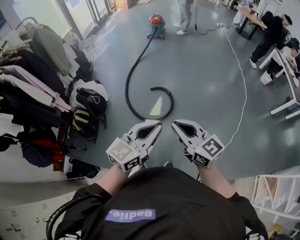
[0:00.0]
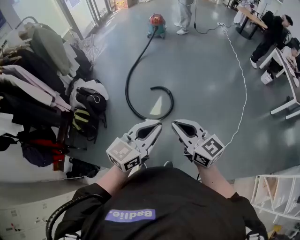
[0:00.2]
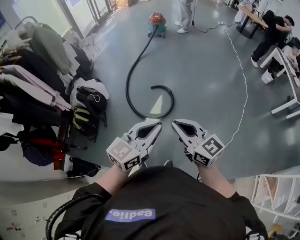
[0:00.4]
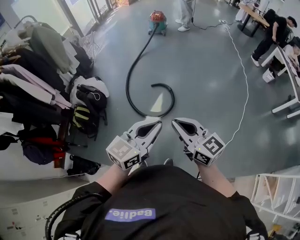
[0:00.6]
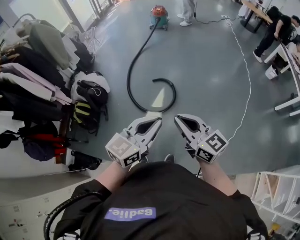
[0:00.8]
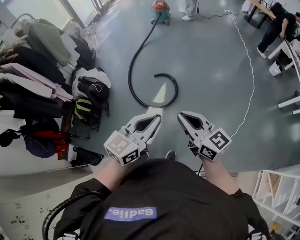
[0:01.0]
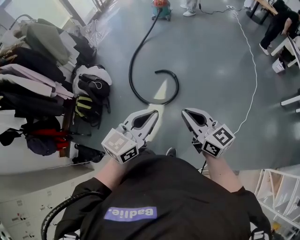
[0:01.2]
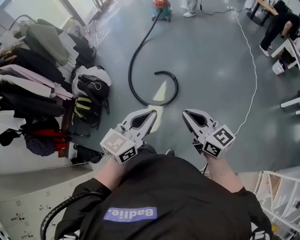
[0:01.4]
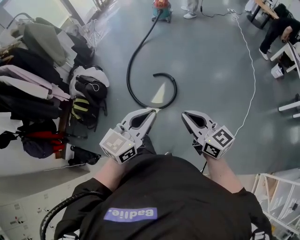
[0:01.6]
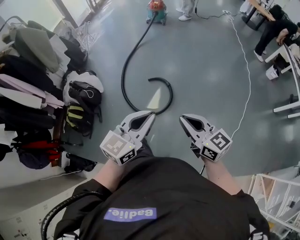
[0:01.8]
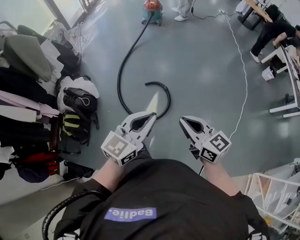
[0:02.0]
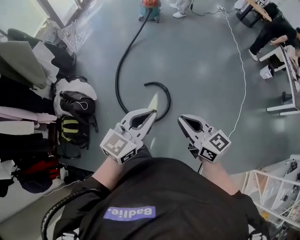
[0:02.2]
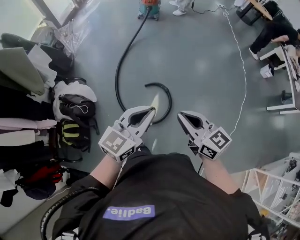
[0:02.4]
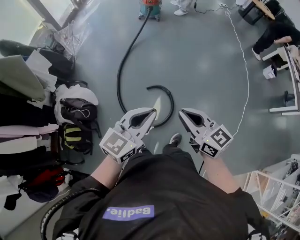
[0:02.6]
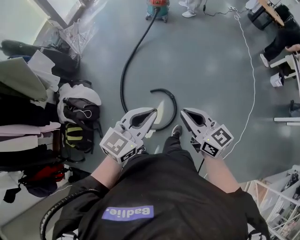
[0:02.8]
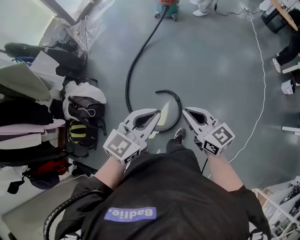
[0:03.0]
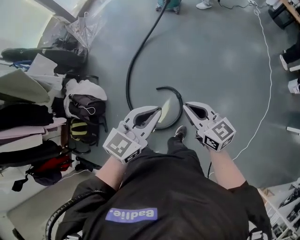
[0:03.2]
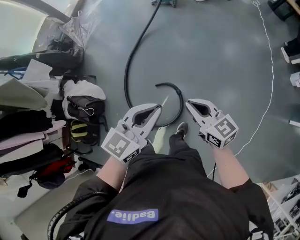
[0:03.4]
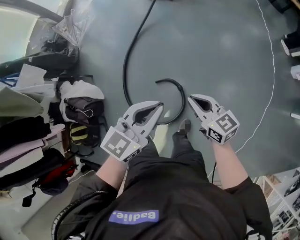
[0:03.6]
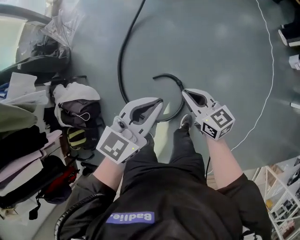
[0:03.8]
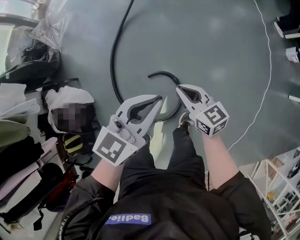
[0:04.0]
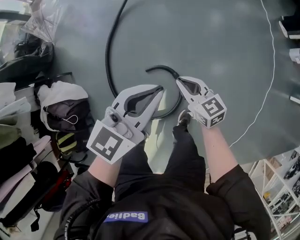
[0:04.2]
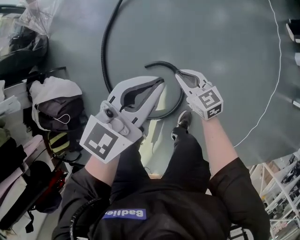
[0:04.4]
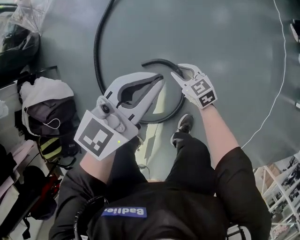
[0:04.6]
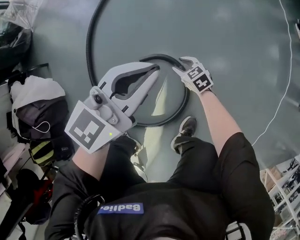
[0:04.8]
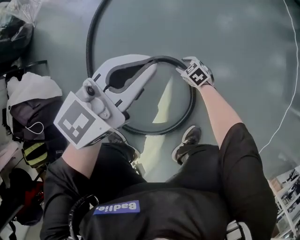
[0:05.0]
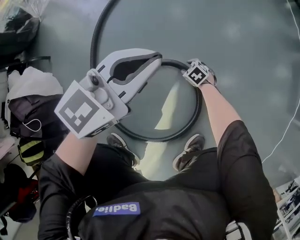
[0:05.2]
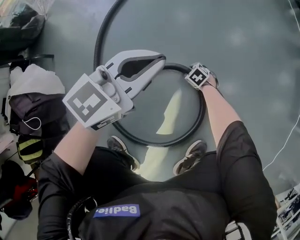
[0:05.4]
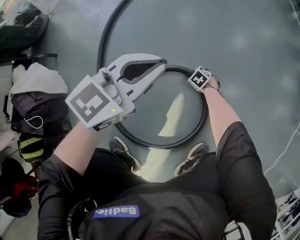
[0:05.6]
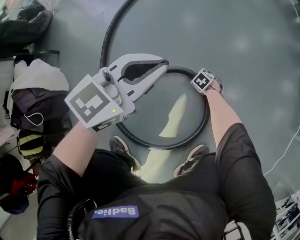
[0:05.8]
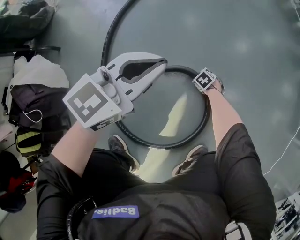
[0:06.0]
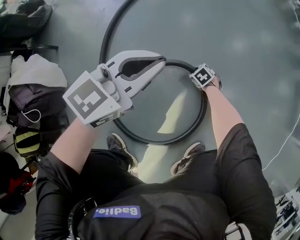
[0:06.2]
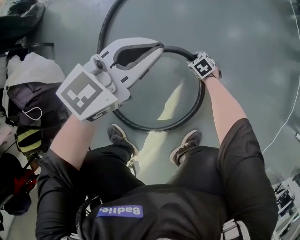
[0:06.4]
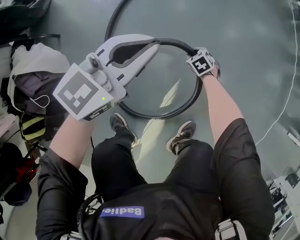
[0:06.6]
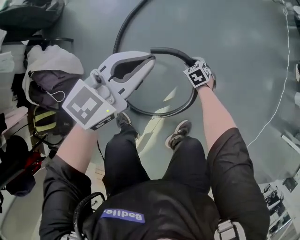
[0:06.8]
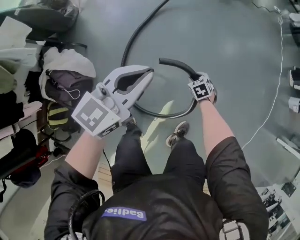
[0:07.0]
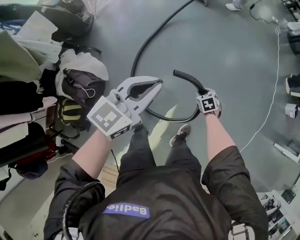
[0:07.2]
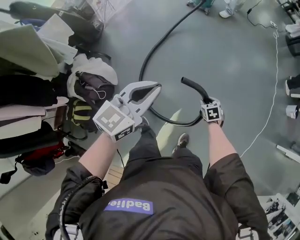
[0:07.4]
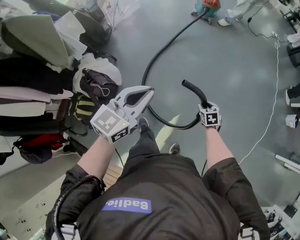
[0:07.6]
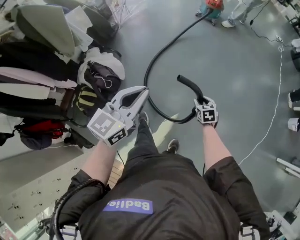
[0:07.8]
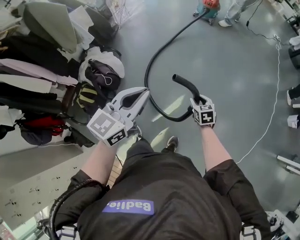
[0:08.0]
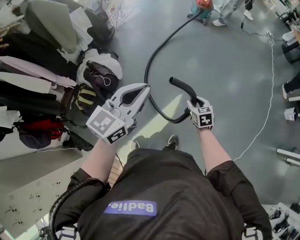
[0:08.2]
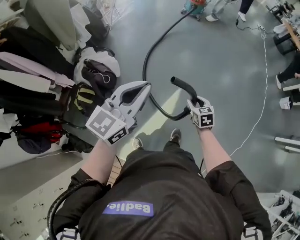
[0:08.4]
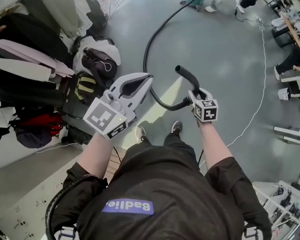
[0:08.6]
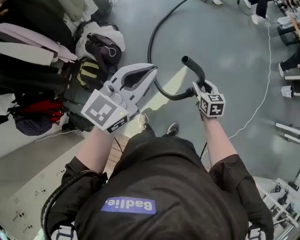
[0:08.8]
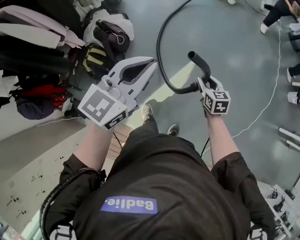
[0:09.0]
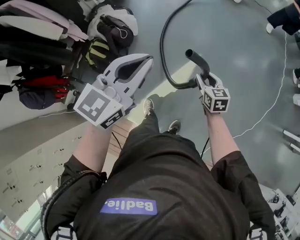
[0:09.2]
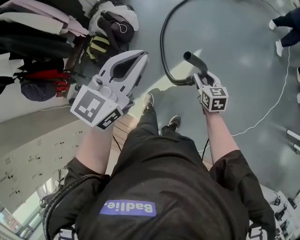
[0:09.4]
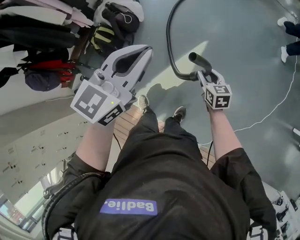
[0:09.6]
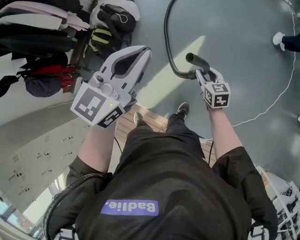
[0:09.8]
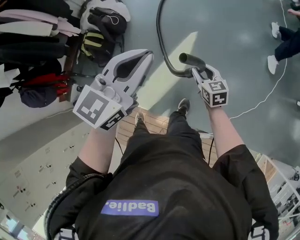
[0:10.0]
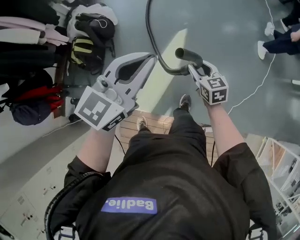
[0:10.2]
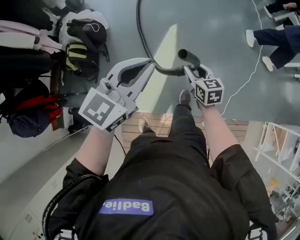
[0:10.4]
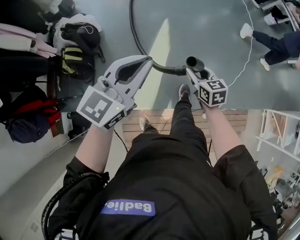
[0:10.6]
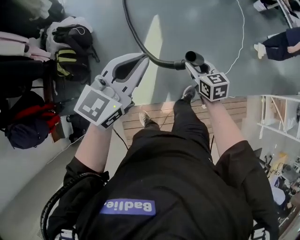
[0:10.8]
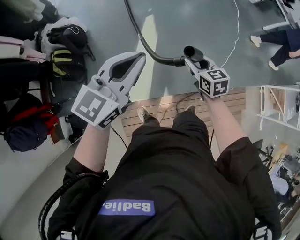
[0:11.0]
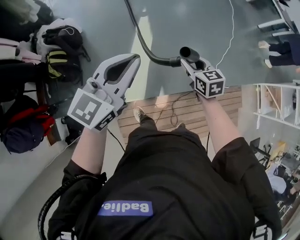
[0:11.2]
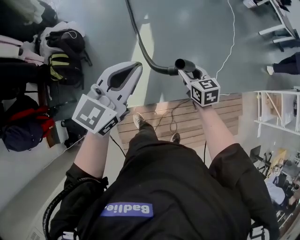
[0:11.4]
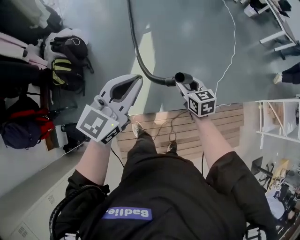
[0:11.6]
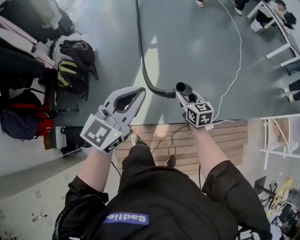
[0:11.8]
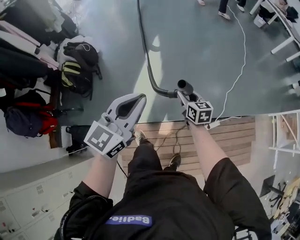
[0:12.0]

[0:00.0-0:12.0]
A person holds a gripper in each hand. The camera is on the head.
0.0 to 1.6 s: The right gripper heads to the right, forward and downward, covering about 10 cm; the left gripper shifts about 10 cm forward.
1.6 to 3.0 s: The pair of grippers is taken forward, some 40 cm.
3.0 to 4.4 s: The grippers both shift downward and forward by approximately 40 cm.
4.4 to 6.0 s: The right gripper goes some 60 cm downward, tips its fingers downward by approximately 50 degrees, and opens, while the left gripper travels downward by about 35 cm.
6.0 to 7.6 s: Both grippers travel together upward, about 70 cm. The right gripper turns by some 30 degrees; the left gripper changes its angle by roughly 20 degrees.
7.6 to 9.0 s: The right gripper moves backward and to the left, some 35 cm, and swivels roughly 20 degrees. The left gripper moves backward, roughly 35 cm.
9.0 to 10.4 s: The left gripper shifts by approximately 30 cm, and changes its angle by some 20 degrees, while the right gripper shifts by about 30 cm.
10.4 to 12.0 s: The right gripper shifts about 30 cm backward, to the right and downward; the left gripper shifts roughly 30 cm backward and to the right.

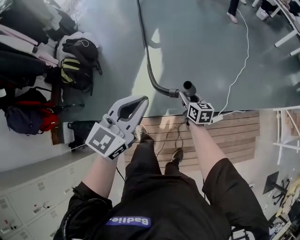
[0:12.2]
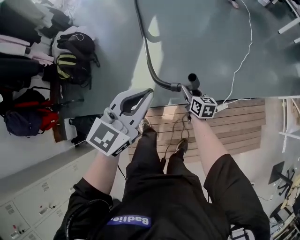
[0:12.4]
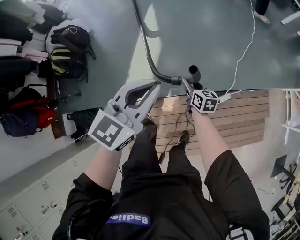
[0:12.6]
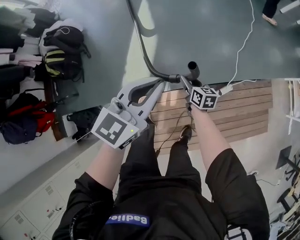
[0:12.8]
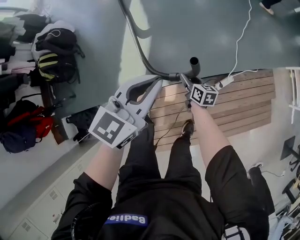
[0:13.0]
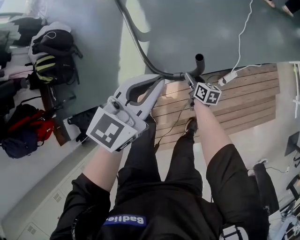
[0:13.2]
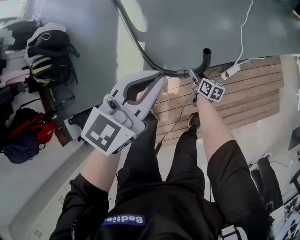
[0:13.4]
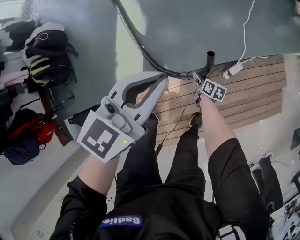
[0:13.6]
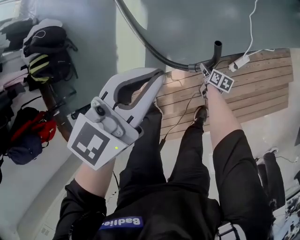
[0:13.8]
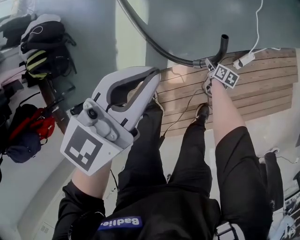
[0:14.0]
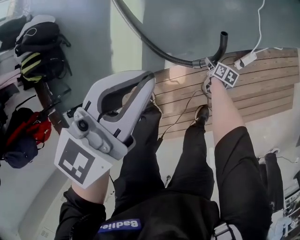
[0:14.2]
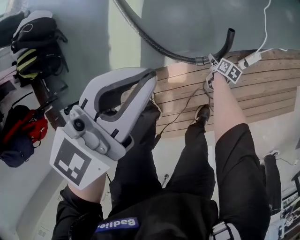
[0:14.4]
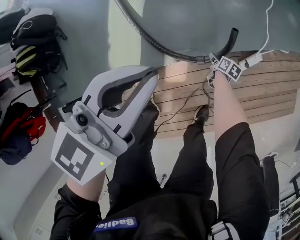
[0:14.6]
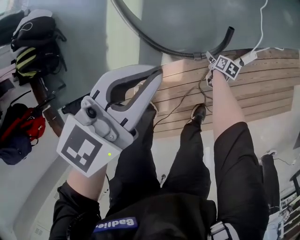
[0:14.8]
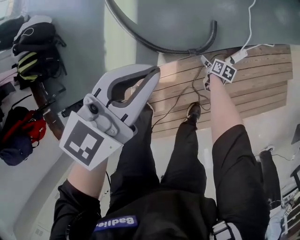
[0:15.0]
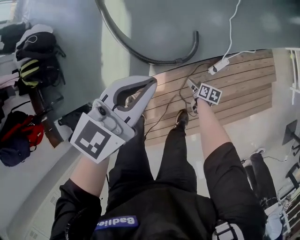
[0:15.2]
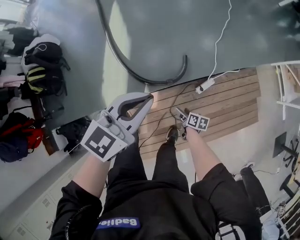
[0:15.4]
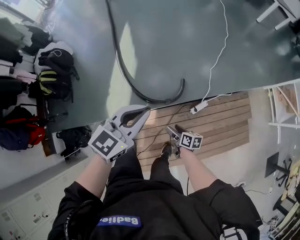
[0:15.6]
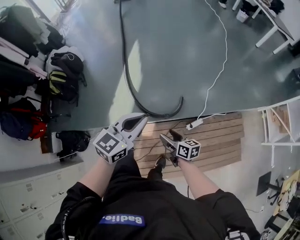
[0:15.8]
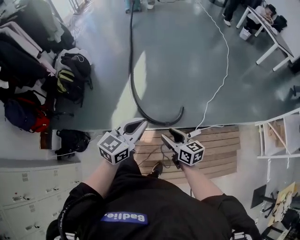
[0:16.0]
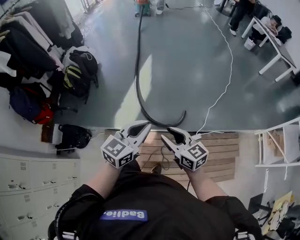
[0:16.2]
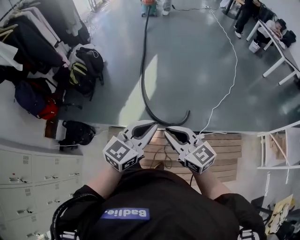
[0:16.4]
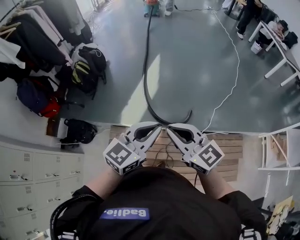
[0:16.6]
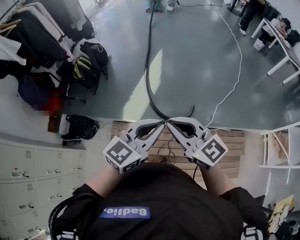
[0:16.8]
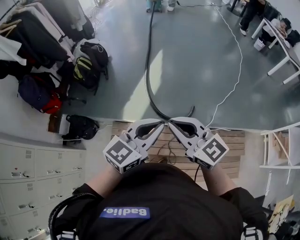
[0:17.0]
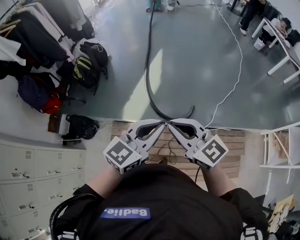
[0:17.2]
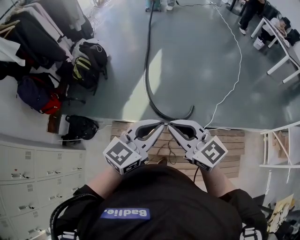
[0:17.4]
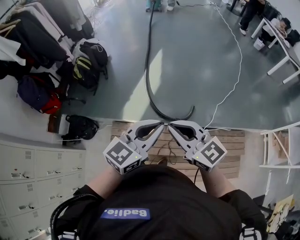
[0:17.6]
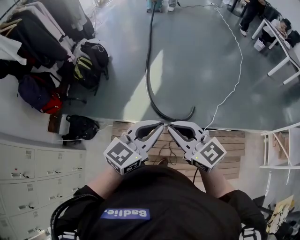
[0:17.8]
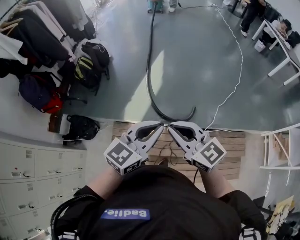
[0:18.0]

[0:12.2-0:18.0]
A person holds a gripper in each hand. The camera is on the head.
12.2 to 13.6 s: The left gripper goes about 25 cm downward, to the right and forward, and turns by approximately 20 degrees. Meanwhile the right gripper travels downward by approximately 40 cm, and changes its angle by some 40 degrees.
13.6 to 15.0 s: The left gripper moves downward, some 5 cm. The right gripper goes some 15 cm downward and to the right, and opens.
15.0 to 16.6 s: The left gripper is displaced upward by about 35 cm, and turns by some 30 degrees; the right gripper travels upward by some 80 cm, tilts its fingers approximately 50 degrees upward, and closes up.
16.6 to 18.0 s: There are only small adjustments of the grippers.

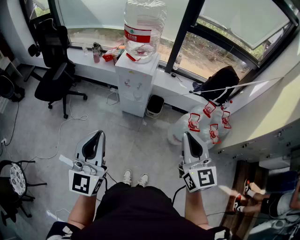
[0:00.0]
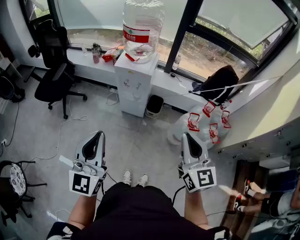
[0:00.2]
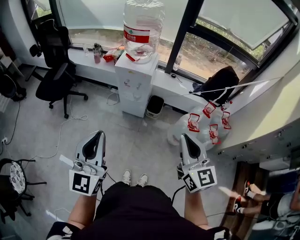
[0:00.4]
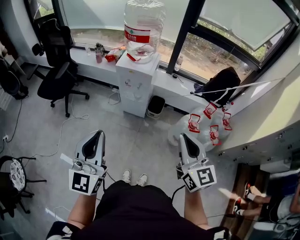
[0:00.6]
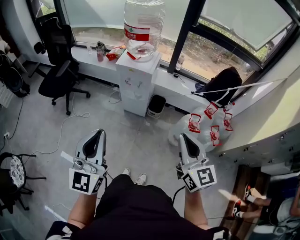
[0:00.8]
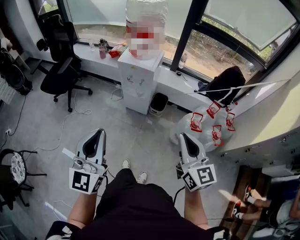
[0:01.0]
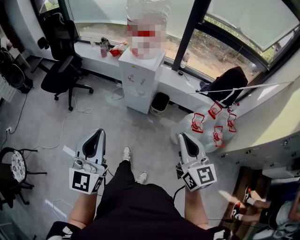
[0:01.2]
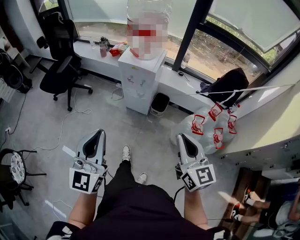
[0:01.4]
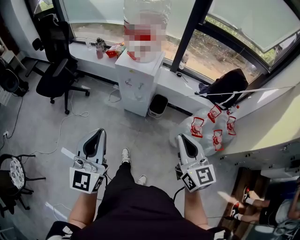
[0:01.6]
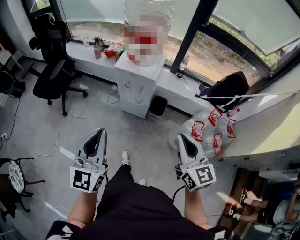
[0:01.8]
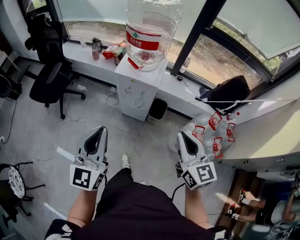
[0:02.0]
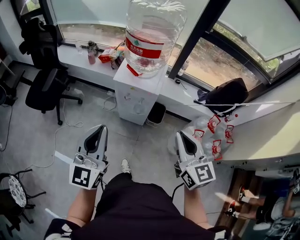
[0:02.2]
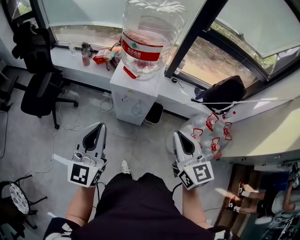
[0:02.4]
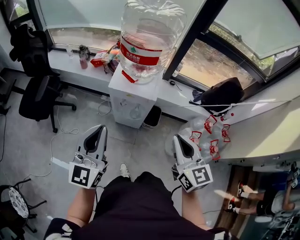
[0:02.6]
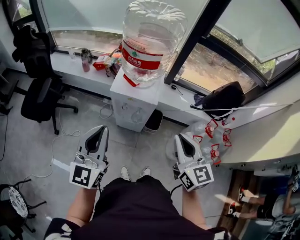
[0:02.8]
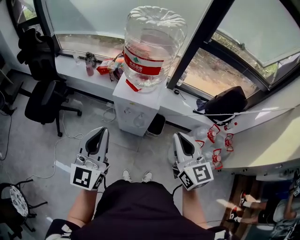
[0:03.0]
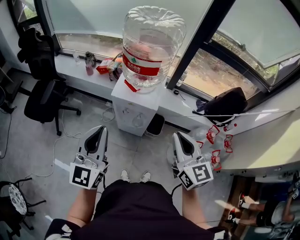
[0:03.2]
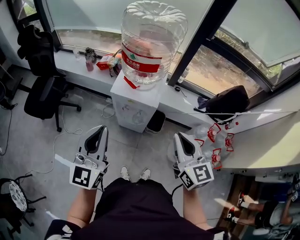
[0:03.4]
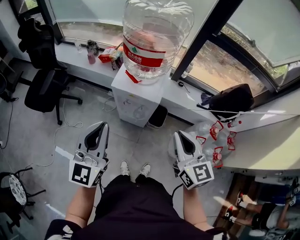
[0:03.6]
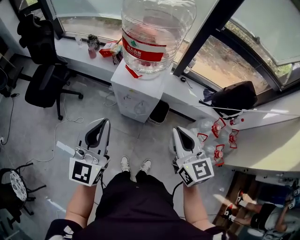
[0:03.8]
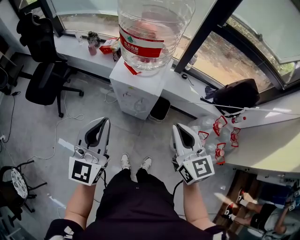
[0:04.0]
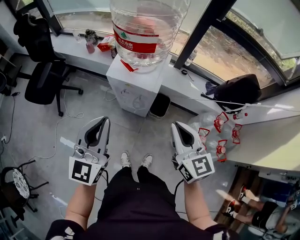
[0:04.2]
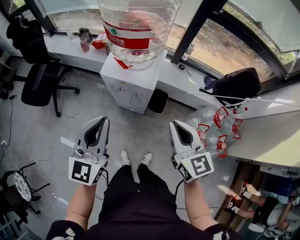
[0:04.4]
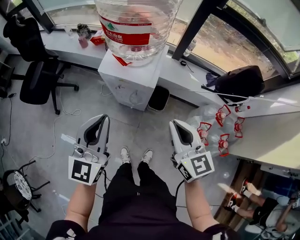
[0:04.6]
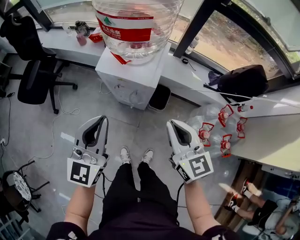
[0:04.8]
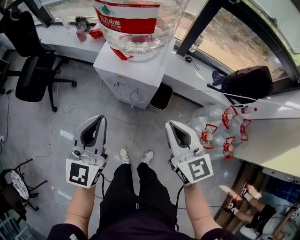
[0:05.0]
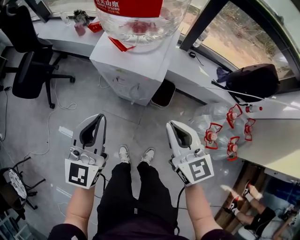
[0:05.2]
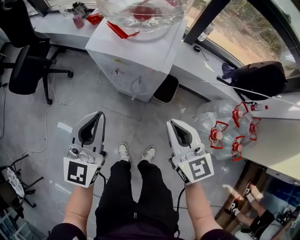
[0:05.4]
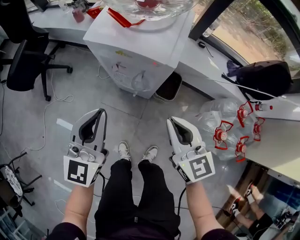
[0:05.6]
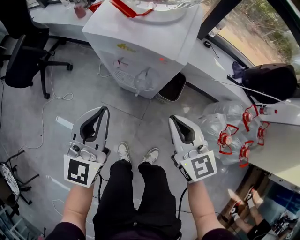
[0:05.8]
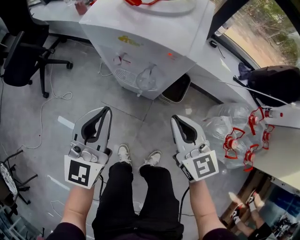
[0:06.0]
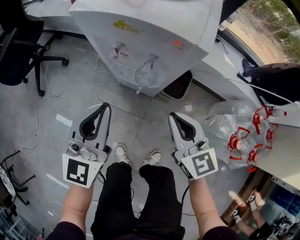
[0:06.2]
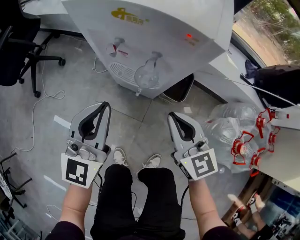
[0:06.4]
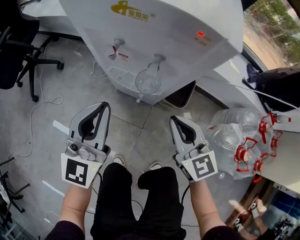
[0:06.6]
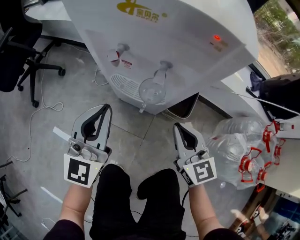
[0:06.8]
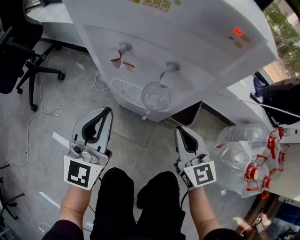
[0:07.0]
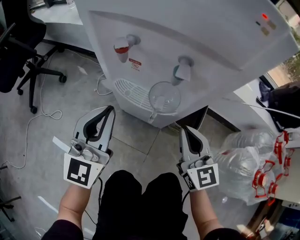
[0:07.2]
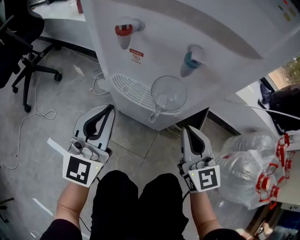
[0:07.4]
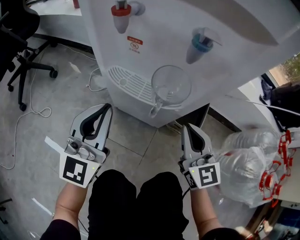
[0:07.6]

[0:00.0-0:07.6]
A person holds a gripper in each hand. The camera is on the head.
0.0 to 1.6 s: The right gripper moves forward and downward, approximately 10 cm. Meanwhile the left gripper heads forward, covering some 5 cm.
1.6 to 3.0 s: The right gripper travels forward and to the left by approximately 25 cm. The left gripper moves forward, some 25 cm.
3.0 to 4.6 s: The right gripper heads downward, covering roughly 10 cm. Meanwhile the left gripper shifts about 10 cm to the right and downward.
4.6 to 6.0 s: The grippers both shift downward by about 30 cm.
6.0 to 7.6 s: The grippers both shift downward by roughly 25 cm.
